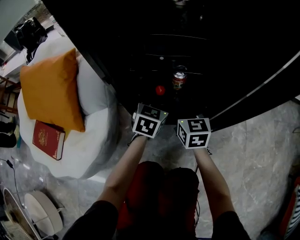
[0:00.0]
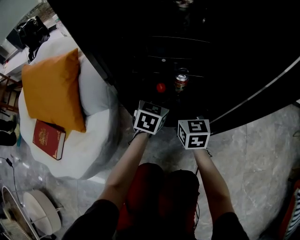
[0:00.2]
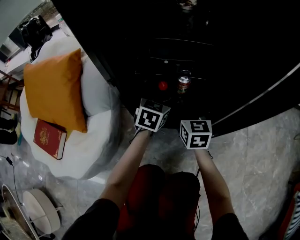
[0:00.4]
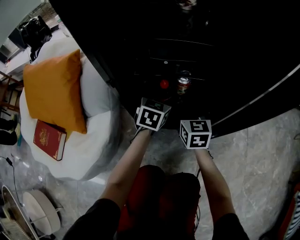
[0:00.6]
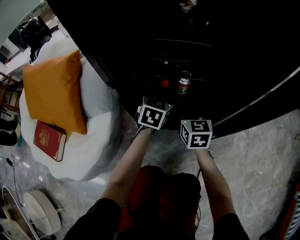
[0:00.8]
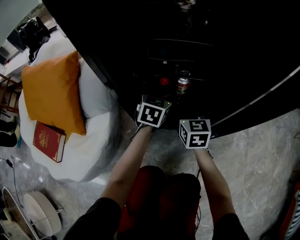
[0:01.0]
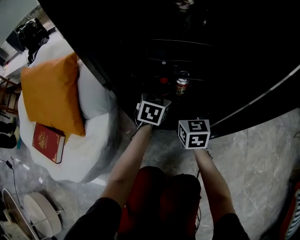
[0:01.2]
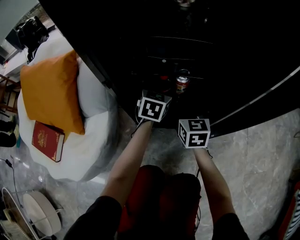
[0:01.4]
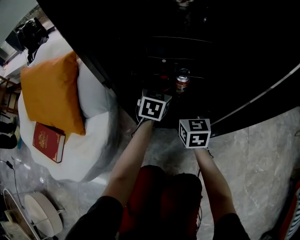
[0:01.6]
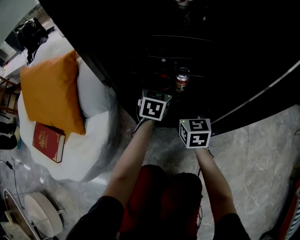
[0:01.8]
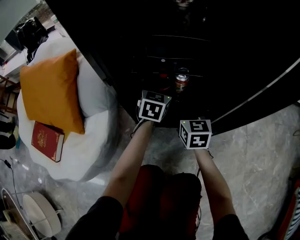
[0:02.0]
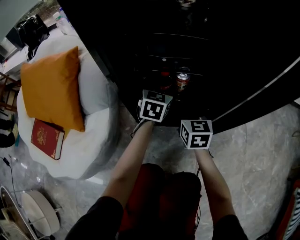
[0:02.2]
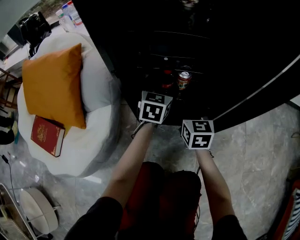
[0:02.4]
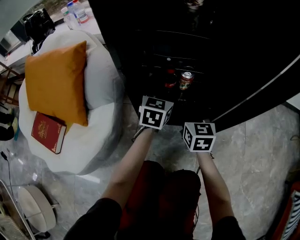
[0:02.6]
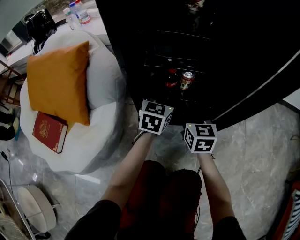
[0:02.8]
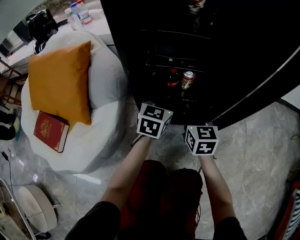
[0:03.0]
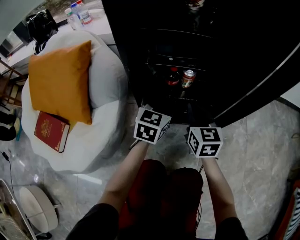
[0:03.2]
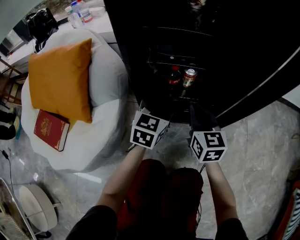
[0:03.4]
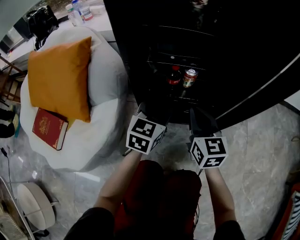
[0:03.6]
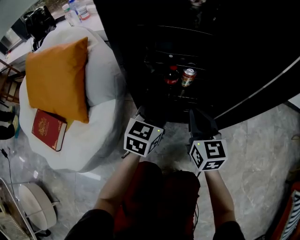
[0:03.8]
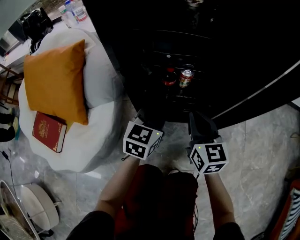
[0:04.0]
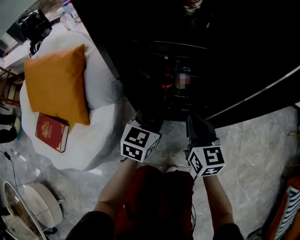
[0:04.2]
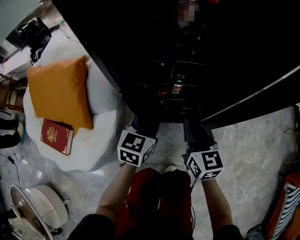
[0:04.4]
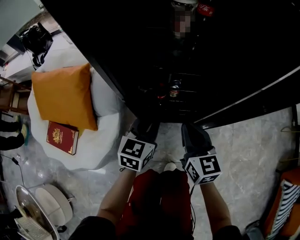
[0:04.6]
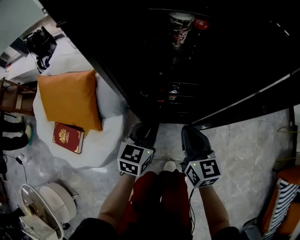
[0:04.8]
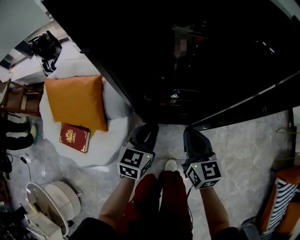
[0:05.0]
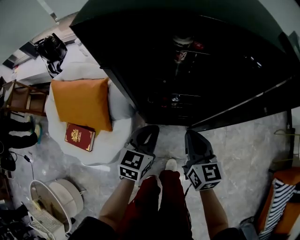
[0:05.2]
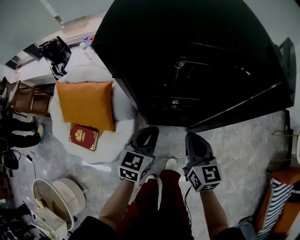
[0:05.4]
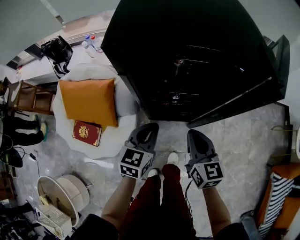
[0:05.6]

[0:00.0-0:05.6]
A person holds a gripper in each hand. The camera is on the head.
0:00.0 to 0:01.4: The left gripper moves forward, some 5 cm.
0:01.4 to 0:02.8: Both grippers travel together backward, roughly 5 cm.
0:02.8 to 0:04.2: The left gripper goes approximately 10 cm backward and upward, and closes up. Meanwhile the right gripper shifts roughly 10 cm upward and backward.
0:04.2 to 0:05.6: Both grippers travel together upward, some 35 cm.

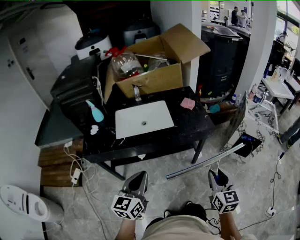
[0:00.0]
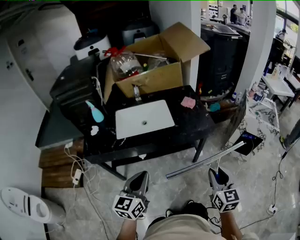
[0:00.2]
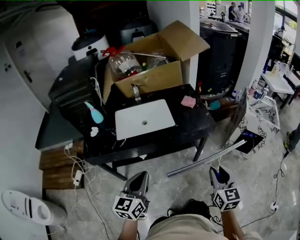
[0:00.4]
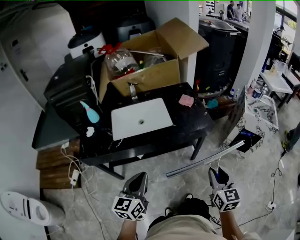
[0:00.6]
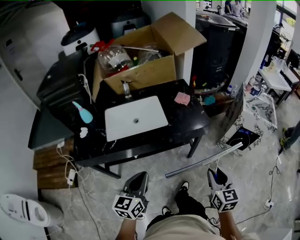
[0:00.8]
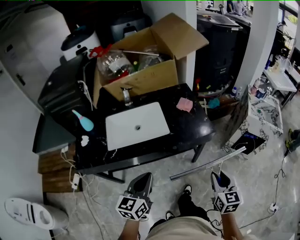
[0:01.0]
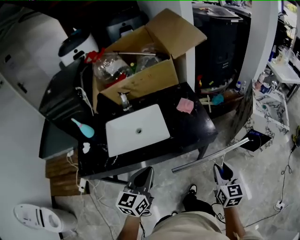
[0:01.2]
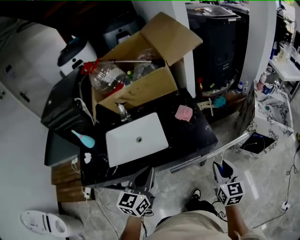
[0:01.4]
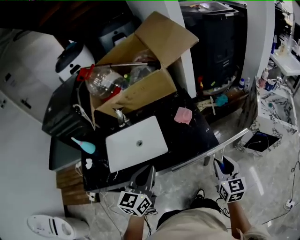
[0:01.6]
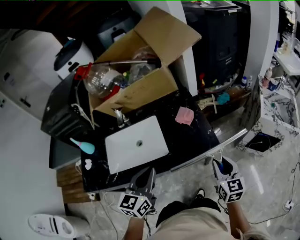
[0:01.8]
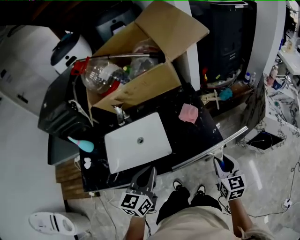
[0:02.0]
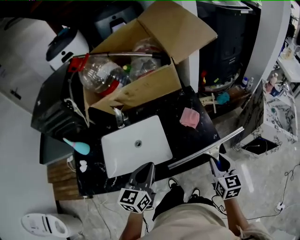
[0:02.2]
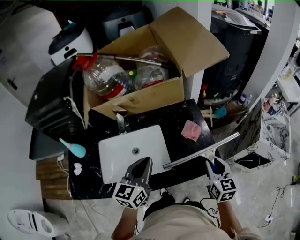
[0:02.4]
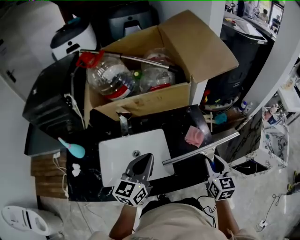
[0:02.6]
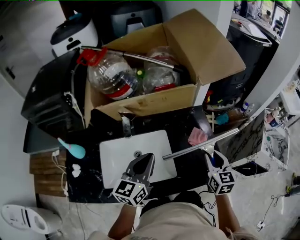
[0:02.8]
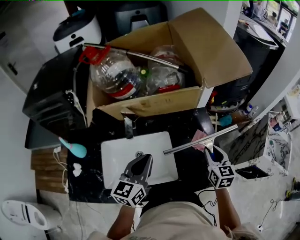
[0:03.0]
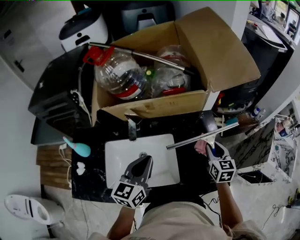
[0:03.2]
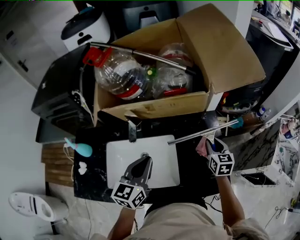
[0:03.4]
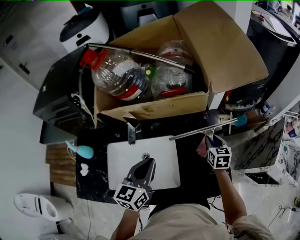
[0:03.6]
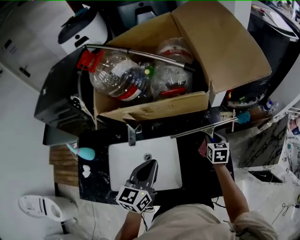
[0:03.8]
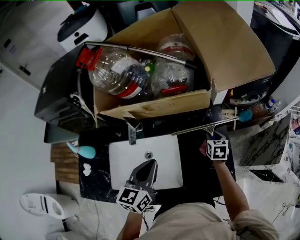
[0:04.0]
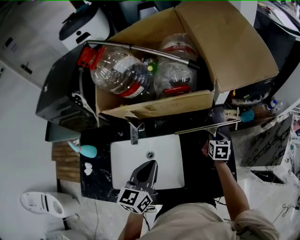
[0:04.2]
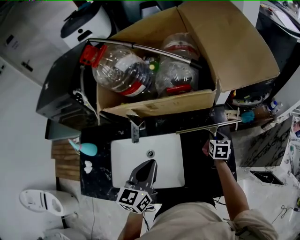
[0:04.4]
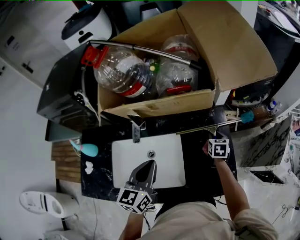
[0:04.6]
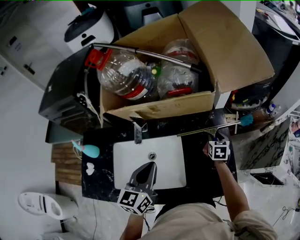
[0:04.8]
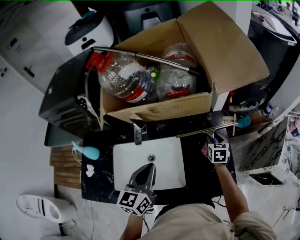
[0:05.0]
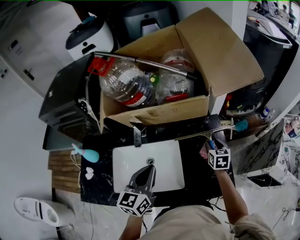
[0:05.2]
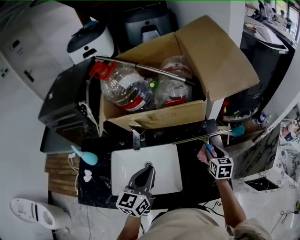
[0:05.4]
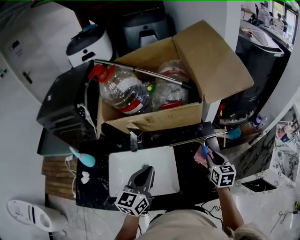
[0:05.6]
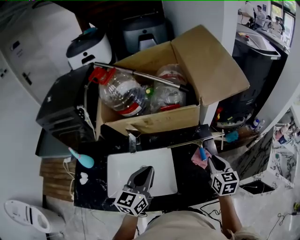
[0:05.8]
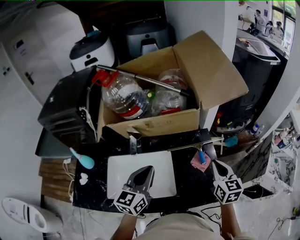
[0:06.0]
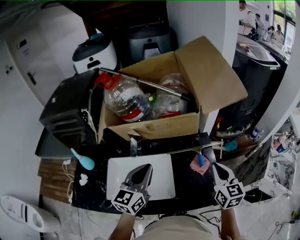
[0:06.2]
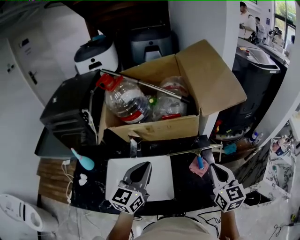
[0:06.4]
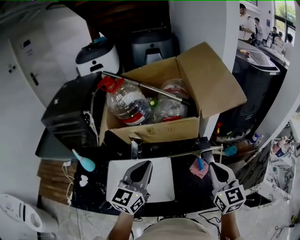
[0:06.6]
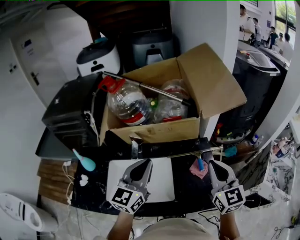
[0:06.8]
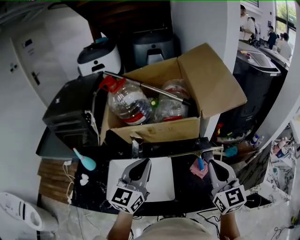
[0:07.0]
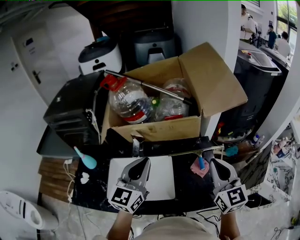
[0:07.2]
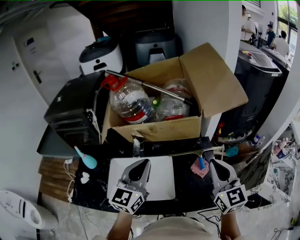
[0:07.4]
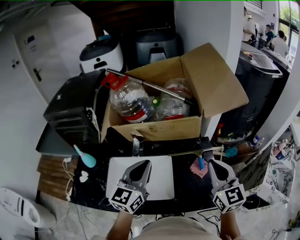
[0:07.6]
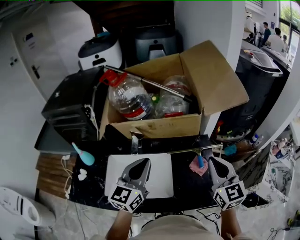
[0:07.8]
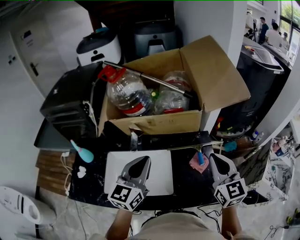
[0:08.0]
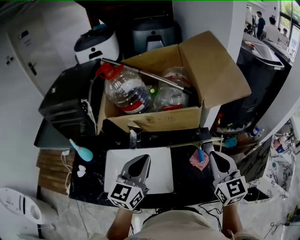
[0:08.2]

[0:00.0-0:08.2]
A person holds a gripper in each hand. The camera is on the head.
0:00.0 to 0:01.6: The grippers both shift forward by about 25 cm.
0:01.6 to 0:03.2: The two grippers go some 30 cm forward and to the left.
0:03.2 to 0:05.0: The right gripper goes roughly 15 cm downward and forward.
0:05.0 to 0:06.6: The right gripper goes about 30 cm upward and backward, tilts its fingers some 30 degrees upward, and closes its fingers, while the left gripper moves upward, approximately 10 cm.
0:06.6 to 0:08.2: The grippers make only small movements.

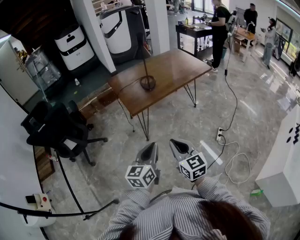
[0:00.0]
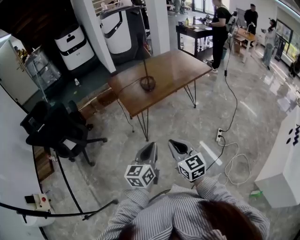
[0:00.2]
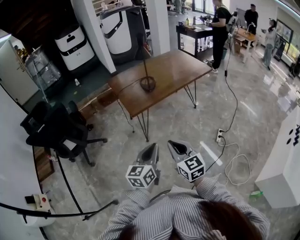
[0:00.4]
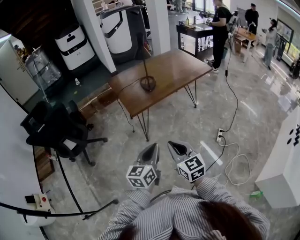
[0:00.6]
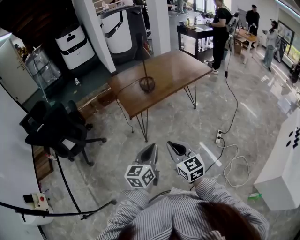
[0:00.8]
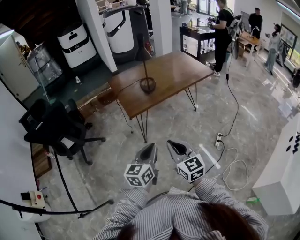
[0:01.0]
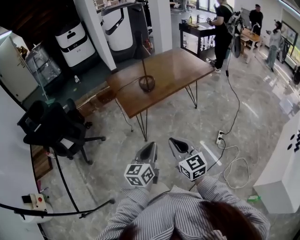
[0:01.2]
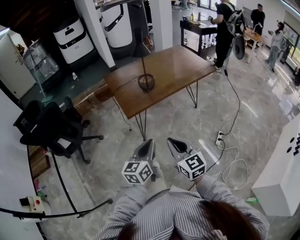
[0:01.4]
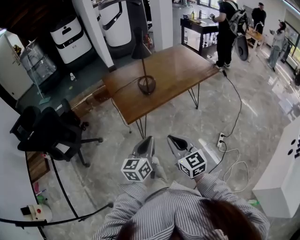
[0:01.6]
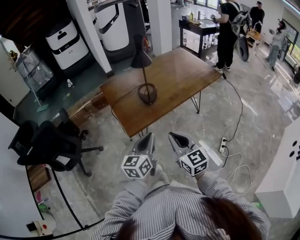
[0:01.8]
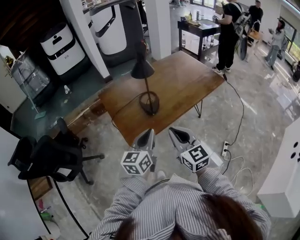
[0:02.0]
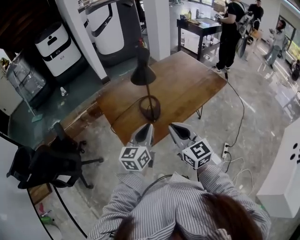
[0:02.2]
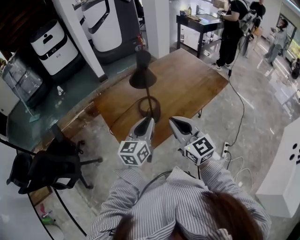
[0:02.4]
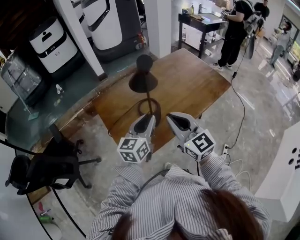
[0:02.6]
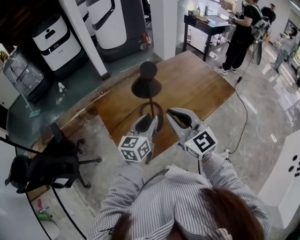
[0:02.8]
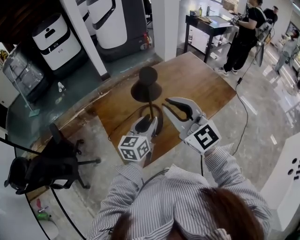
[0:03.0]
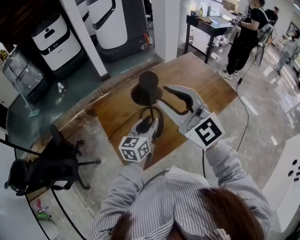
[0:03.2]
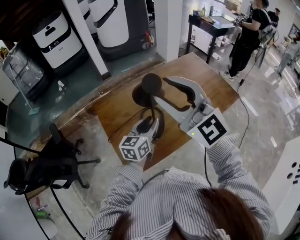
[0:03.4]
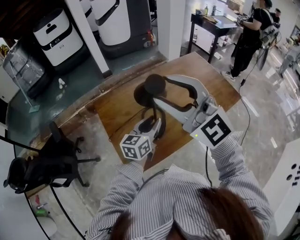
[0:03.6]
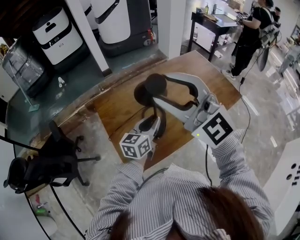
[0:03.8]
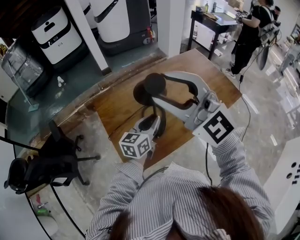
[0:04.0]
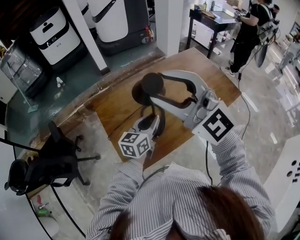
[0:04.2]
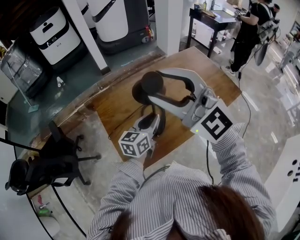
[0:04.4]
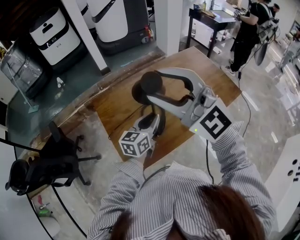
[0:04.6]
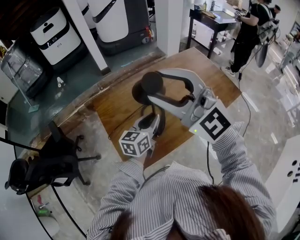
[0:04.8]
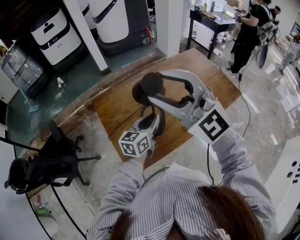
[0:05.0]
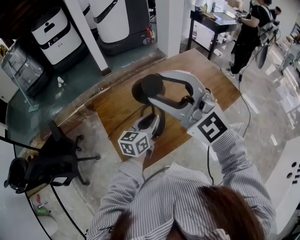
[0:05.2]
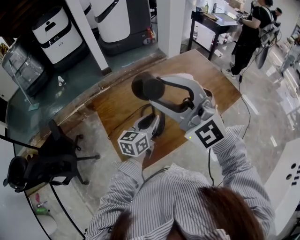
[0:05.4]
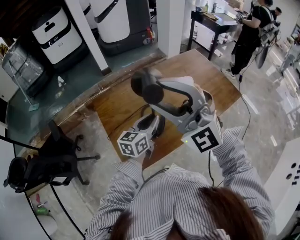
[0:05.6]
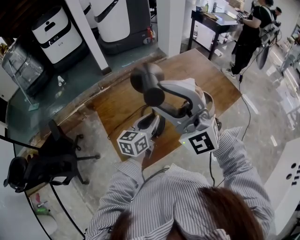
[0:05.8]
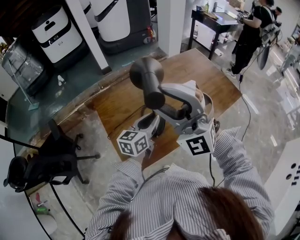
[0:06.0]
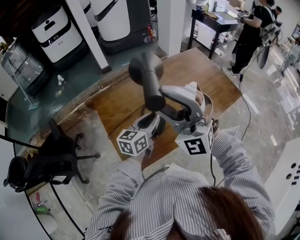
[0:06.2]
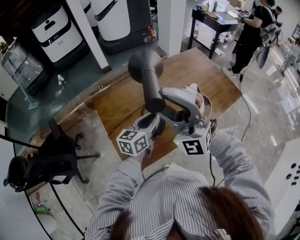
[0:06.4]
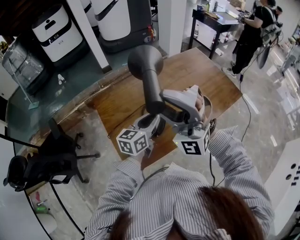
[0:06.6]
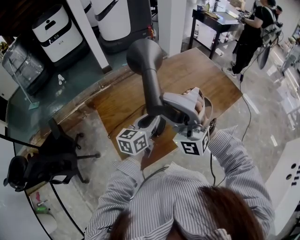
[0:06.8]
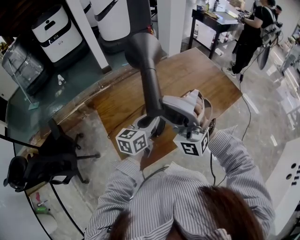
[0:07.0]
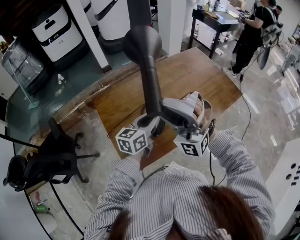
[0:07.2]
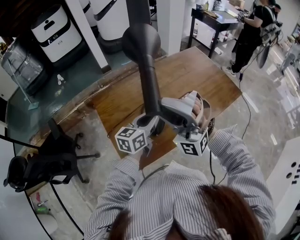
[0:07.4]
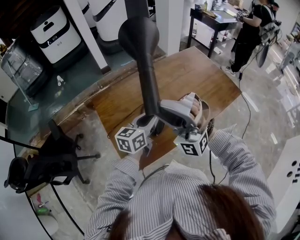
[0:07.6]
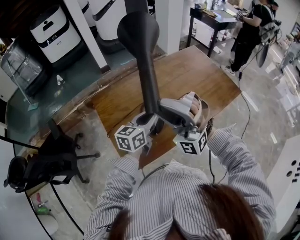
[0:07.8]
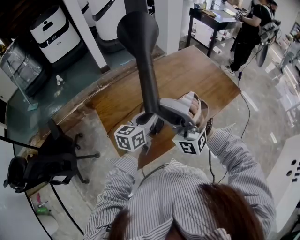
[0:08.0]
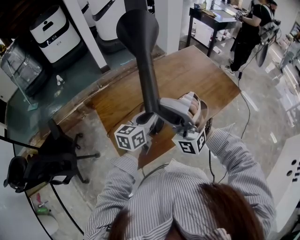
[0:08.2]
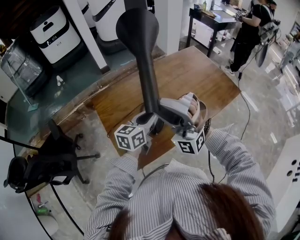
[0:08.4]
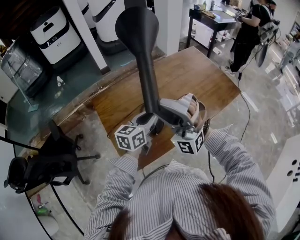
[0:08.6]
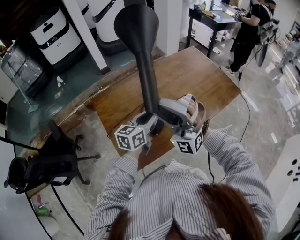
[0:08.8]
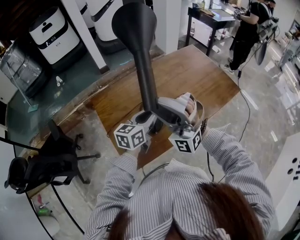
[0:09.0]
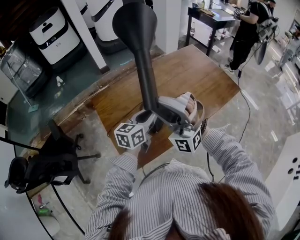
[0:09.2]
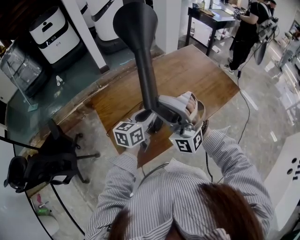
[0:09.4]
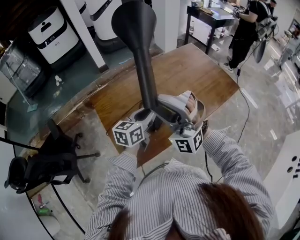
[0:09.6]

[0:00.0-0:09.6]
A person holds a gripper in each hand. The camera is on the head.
0:00.0 to 0:01.6: Both grippers move forward, about 15 cm.
0:01.6 to 0:03.2: The pair of grippers is taken forward, about 50 cm. The right gripper travels upward by some 20 cm, swivels approximately 30 degrees, and opens up. The left gripper opens.
0:03.2 to 0:04.8: The right gripper changes place by approximately 5 cm, and turns by some 20 degrees.
0:04.8 to 0:06.4: The right gripper swivels some 40 degrees.
0:06.4 to 0:08.0: The right gripper travels downward by roughly 5 cm.
0:08.0 to 0:09.6: There are only small adjustments of the grippers.
